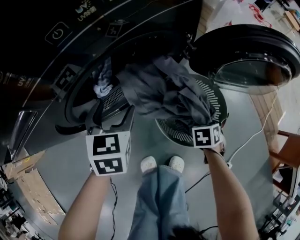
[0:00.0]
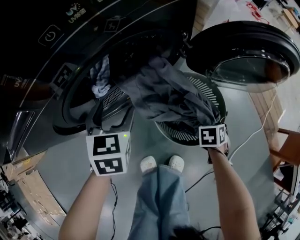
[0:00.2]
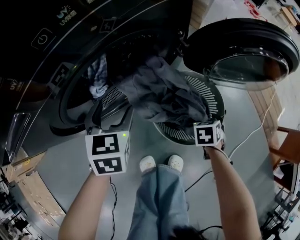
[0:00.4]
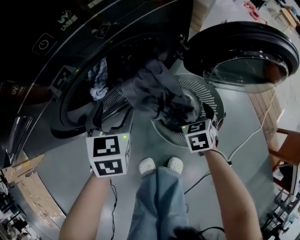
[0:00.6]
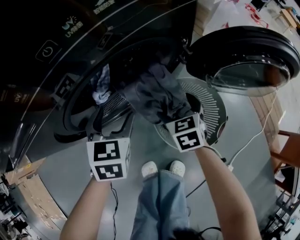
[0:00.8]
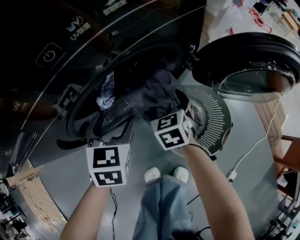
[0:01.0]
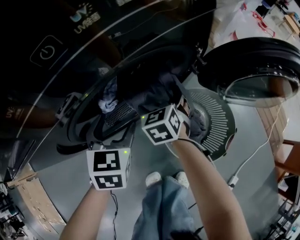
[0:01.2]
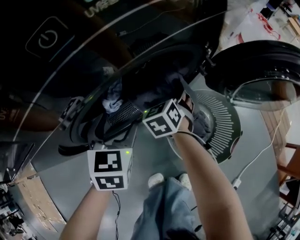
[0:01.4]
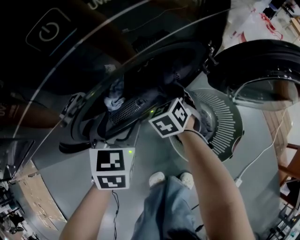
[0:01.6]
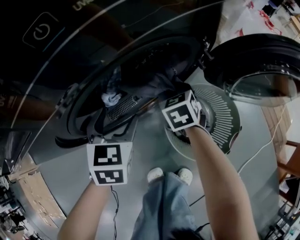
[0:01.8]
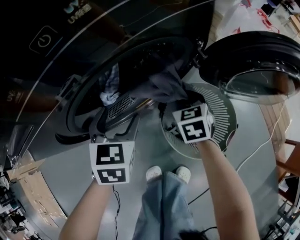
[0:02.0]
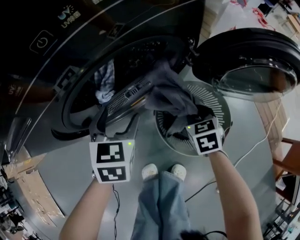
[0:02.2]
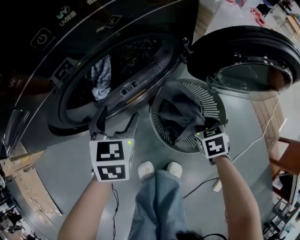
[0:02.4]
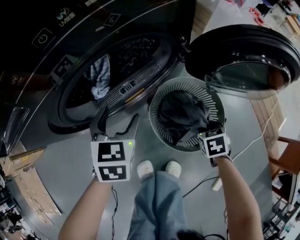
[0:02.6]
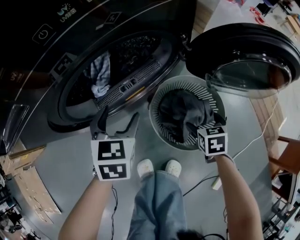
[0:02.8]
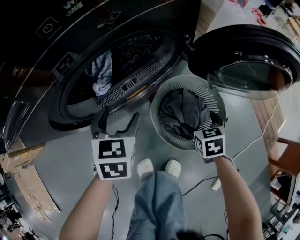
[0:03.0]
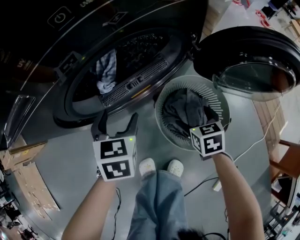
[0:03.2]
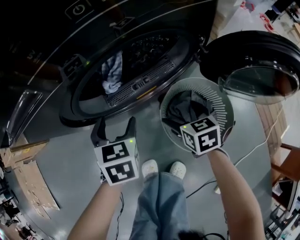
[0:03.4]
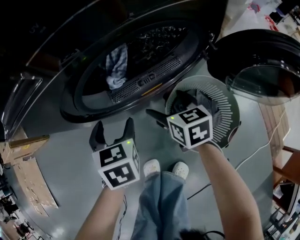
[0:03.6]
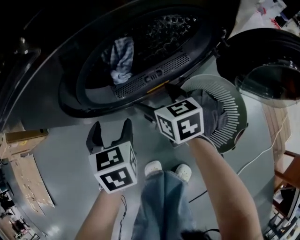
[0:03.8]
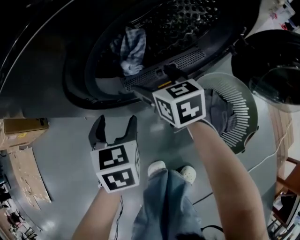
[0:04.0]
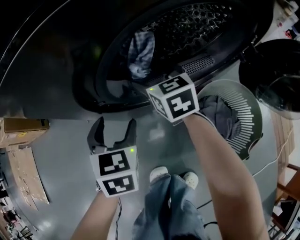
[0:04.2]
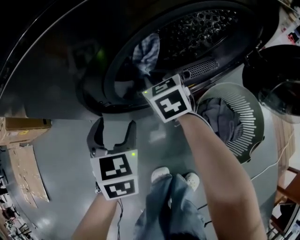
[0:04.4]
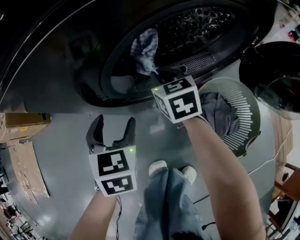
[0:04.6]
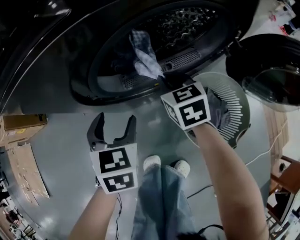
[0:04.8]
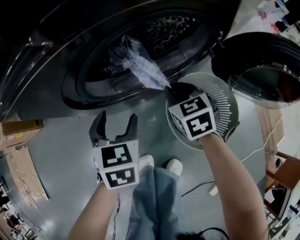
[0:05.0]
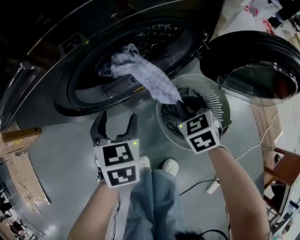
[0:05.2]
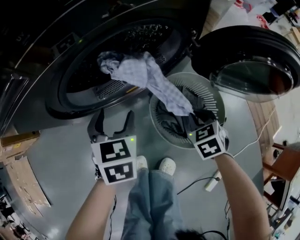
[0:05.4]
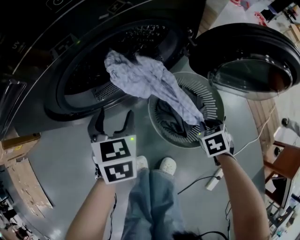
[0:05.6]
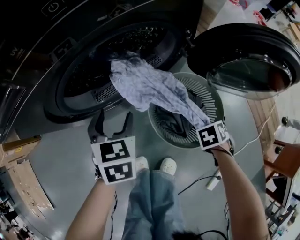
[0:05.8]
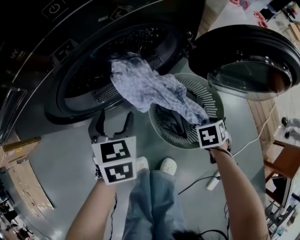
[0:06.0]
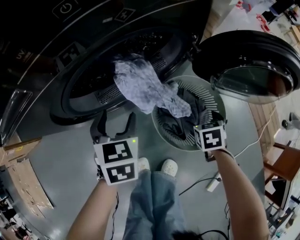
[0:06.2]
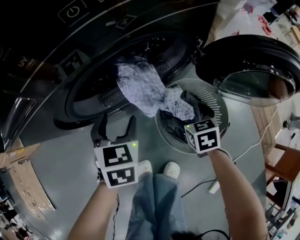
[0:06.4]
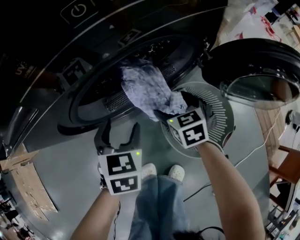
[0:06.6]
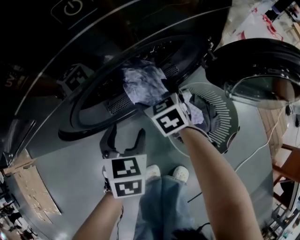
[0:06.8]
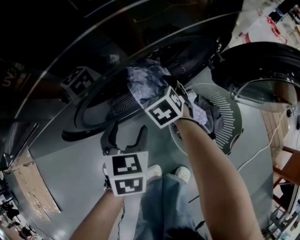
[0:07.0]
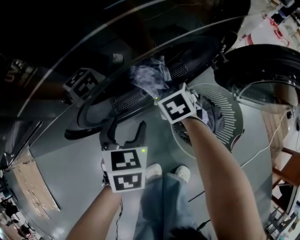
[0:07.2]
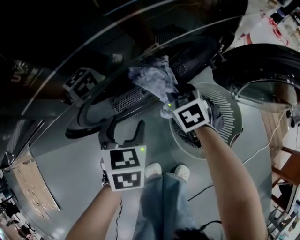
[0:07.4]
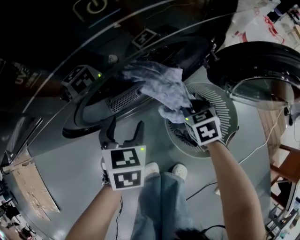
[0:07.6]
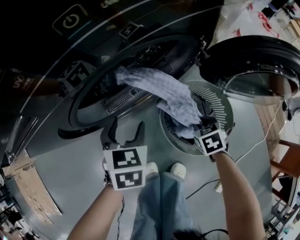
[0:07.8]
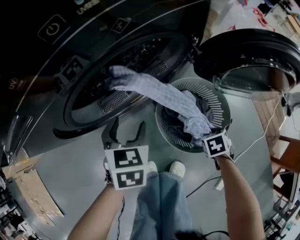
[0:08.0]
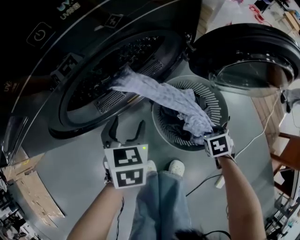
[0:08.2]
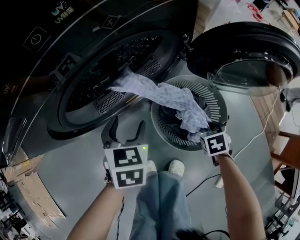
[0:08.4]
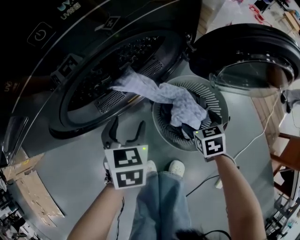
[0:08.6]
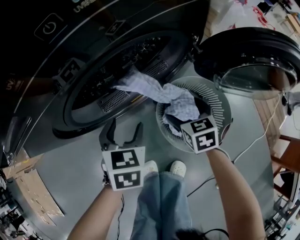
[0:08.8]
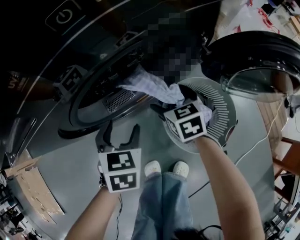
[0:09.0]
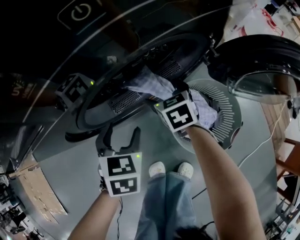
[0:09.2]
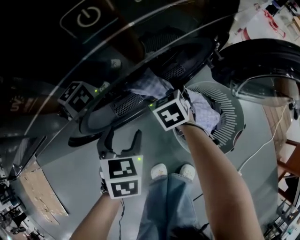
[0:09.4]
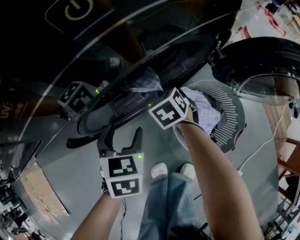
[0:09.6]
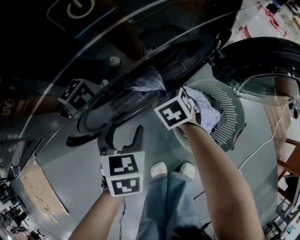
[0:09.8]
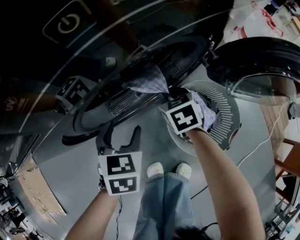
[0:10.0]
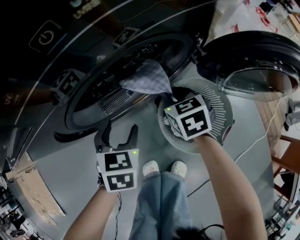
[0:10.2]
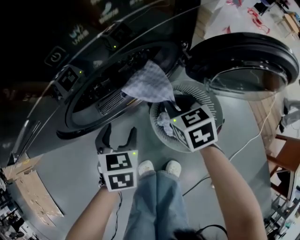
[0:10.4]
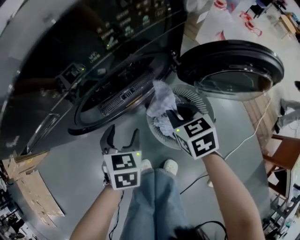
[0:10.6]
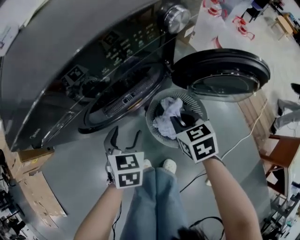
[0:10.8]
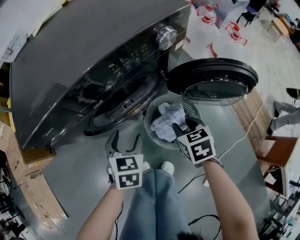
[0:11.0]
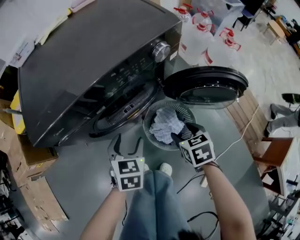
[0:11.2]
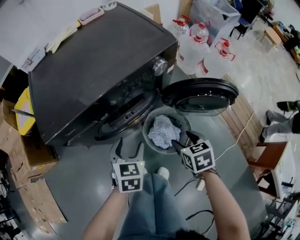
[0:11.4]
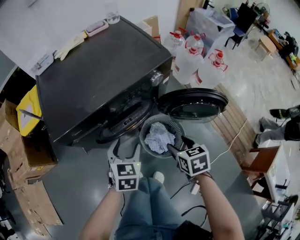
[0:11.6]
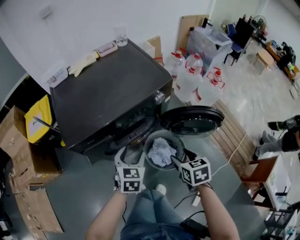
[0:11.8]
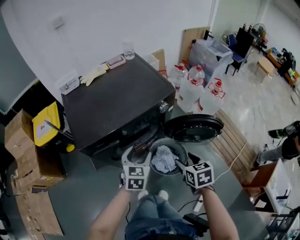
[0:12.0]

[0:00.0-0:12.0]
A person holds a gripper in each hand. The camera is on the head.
0:00.0 to 0:01.6: The right gripper moves some 35 cm, rotates roughly 50 degrees, and opens and closes again.
0:01.6 to 0:03.0: The right gripper is displaced backward and to the right by about 25 cm, turns by some 30 degrees, and opens up, while the left gripper changes place by approximately 5 cm.
0:03.0 to 0:04.4: The right gripper shifts by some 40 cm, rotates some 40 degrees, and closes. Meanwhile the left gripper shifts by approximately 20 cm.
0:04.4 to 0:06.0: The right gripper changes place by about 50 cm, and points its fingers roughly 40 degrees further downward. The left gripper shifts by approximately 15 cm.
0:06.0 to 0:07.6: The right gripper rotates some 30 degrees, and opens, then closes once more.
0:07.6 to 0:09.0: The right gripper opens its fingers.
0:09.0 to 0:10.4: The right gripper moves upward, roughly 5 cm, and closes up.
0:10.4 to 0:12.0: The left gripper travels upward by roughly 35 cm, and changes its angle by roughly 20 degrees. Meanwhile the right gripper heads upward and backward, covering some 40 cm, and opens its fingers.

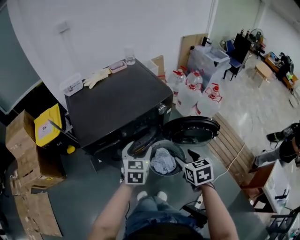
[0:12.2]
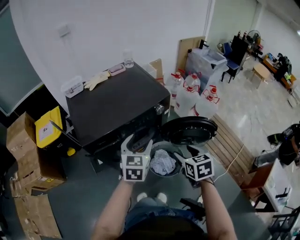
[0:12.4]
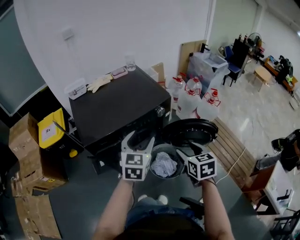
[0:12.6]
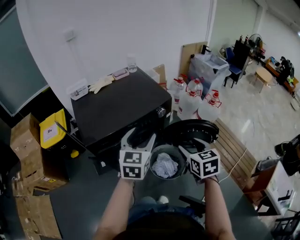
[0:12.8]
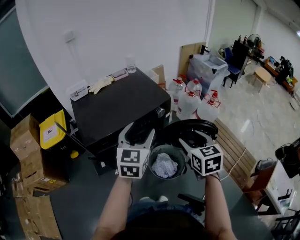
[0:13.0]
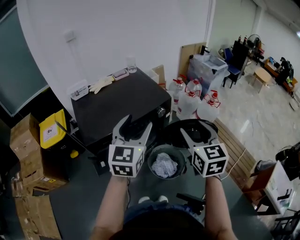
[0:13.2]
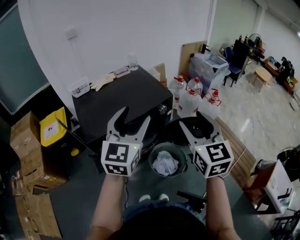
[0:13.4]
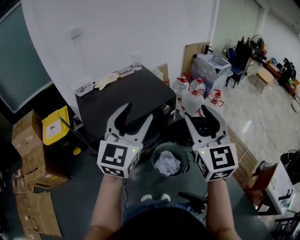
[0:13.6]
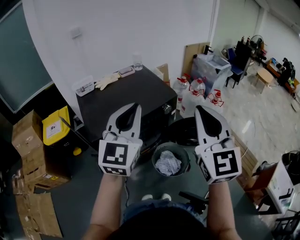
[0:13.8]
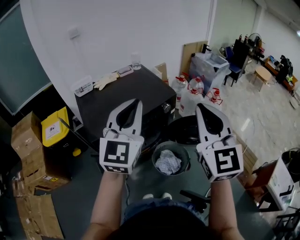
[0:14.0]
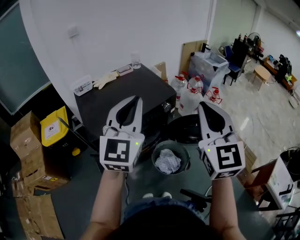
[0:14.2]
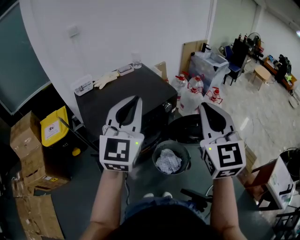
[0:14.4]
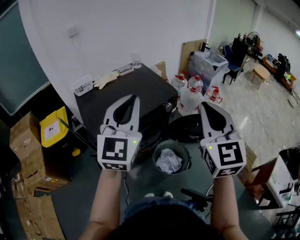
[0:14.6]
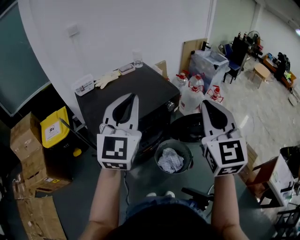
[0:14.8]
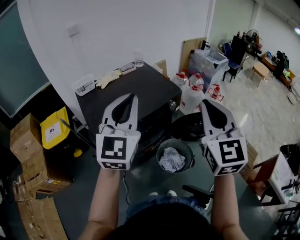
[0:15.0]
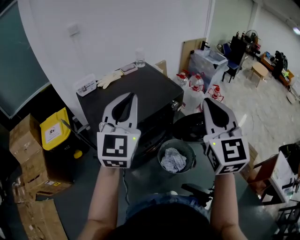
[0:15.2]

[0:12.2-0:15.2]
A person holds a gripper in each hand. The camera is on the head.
0:12.2 to 0:13.8: Both grippers move upward, approximately 30 cm. The left gripper points its fingers some 30 degrees further upward, and closes its fingers. The right gripper tips its fingers upward by some 50 degrees, and closes.
0:13.8 to 0:15.2: The left gripper moves to the left, about 10 cm.

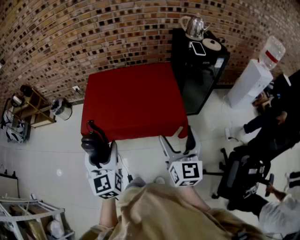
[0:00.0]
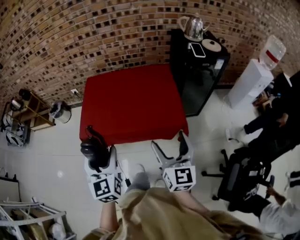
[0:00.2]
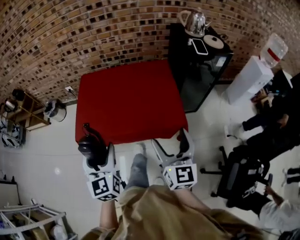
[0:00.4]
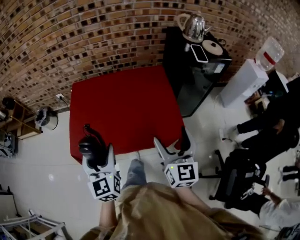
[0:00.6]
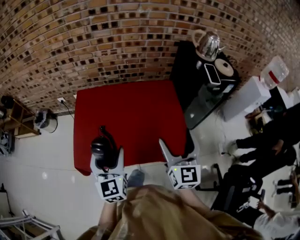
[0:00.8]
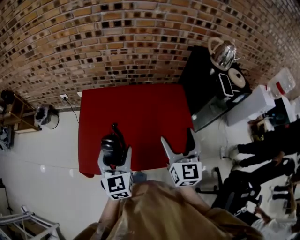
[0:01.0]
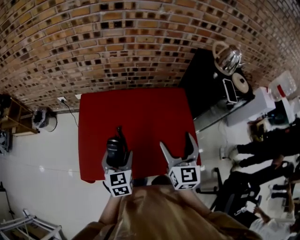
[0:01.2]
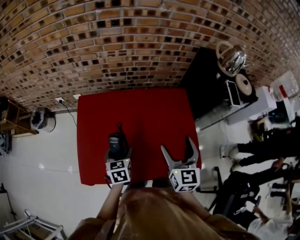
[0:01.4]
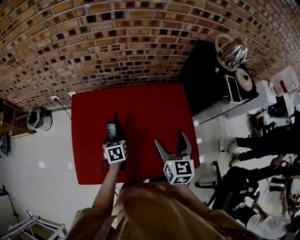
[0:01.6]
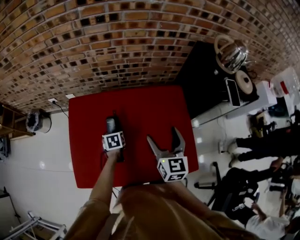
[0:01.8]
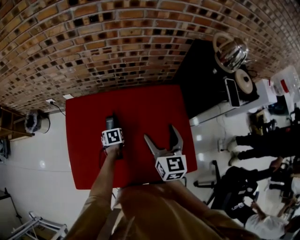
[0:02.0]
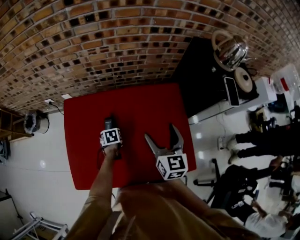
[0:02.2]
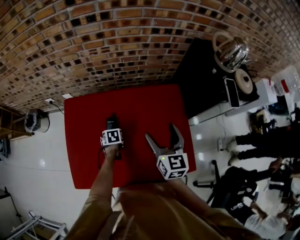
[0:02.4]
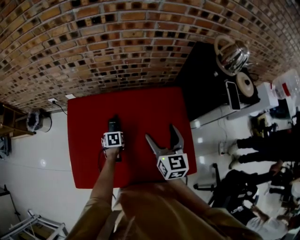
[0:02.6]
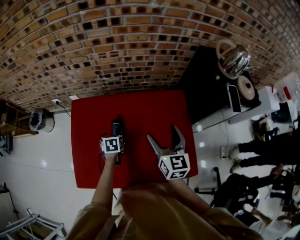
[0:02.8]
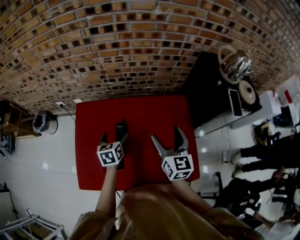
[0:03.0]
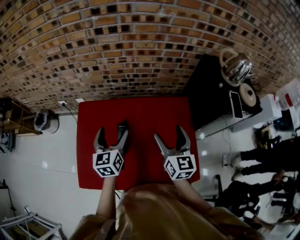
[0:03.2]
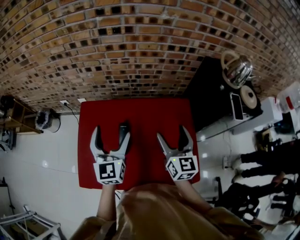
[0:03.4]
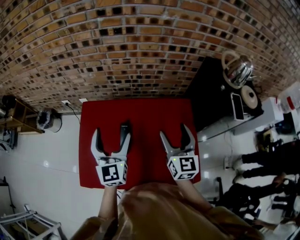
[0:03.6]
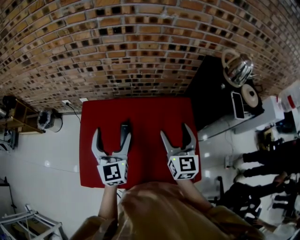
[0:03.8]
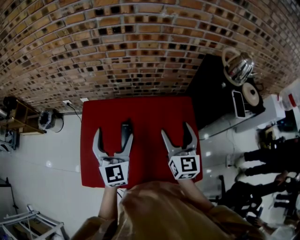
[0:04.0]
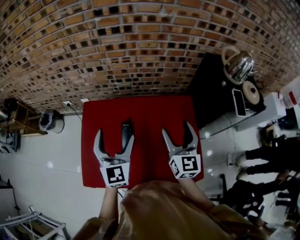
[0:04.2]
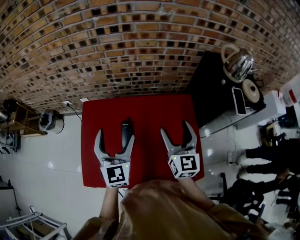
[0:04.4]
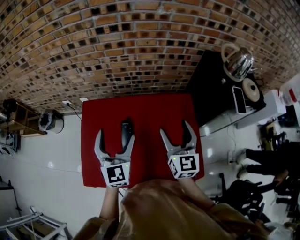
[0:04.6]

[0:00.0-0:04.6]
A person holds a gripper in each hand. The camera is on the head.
0:00.0 to 0:01.6: Both grippers are carried forward, roughly 40 cm. The left gripper goes about 30 cm downward, and points its fingers about 40 degrees further downward.
0:01.6 to 0:03.0: The right gripper goes roughly 5 cm forward. Meanwhile the left gripper moves upward and forward, roughly 10 cm.
0:03.0 to 0:04.6: The left gripper goes approximately 20 cm upward, and tips its fingers upward by approximately 30 degrees.

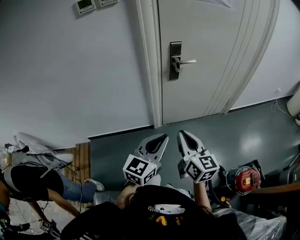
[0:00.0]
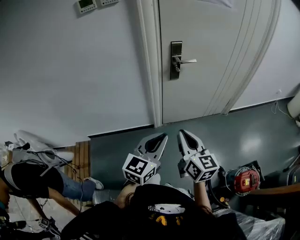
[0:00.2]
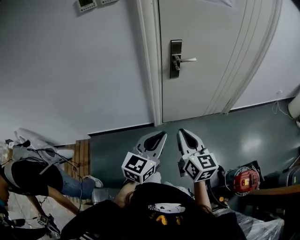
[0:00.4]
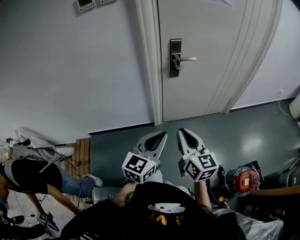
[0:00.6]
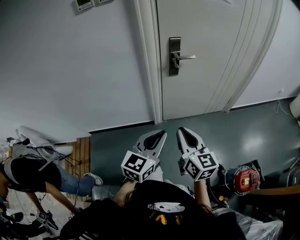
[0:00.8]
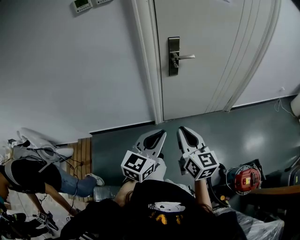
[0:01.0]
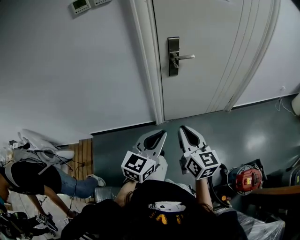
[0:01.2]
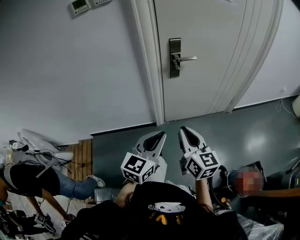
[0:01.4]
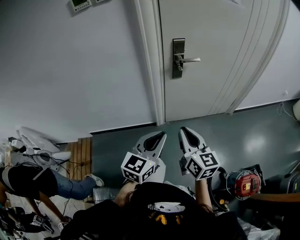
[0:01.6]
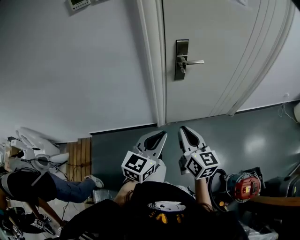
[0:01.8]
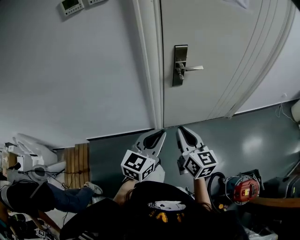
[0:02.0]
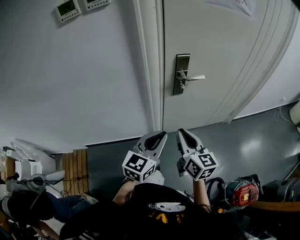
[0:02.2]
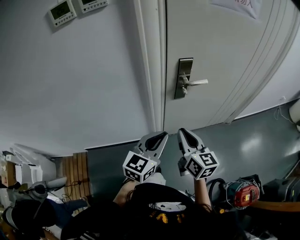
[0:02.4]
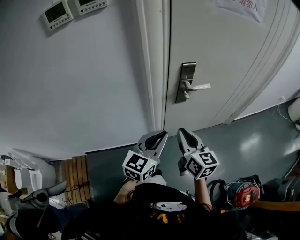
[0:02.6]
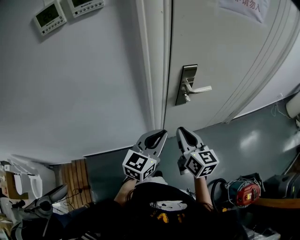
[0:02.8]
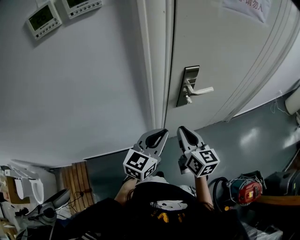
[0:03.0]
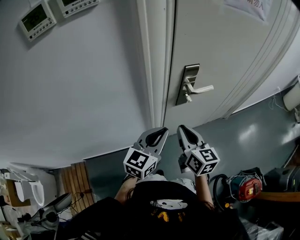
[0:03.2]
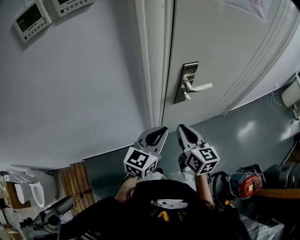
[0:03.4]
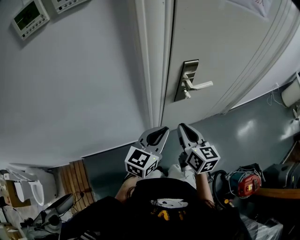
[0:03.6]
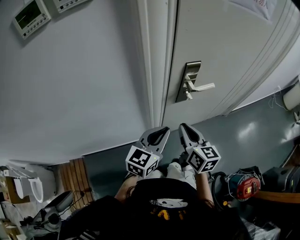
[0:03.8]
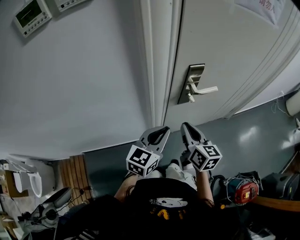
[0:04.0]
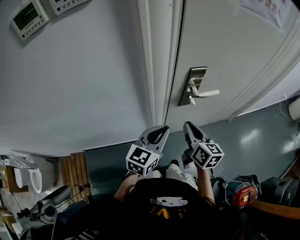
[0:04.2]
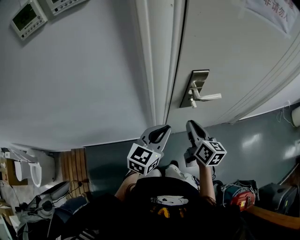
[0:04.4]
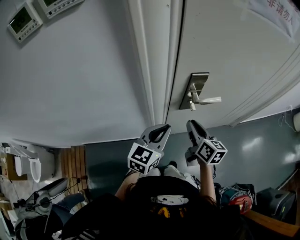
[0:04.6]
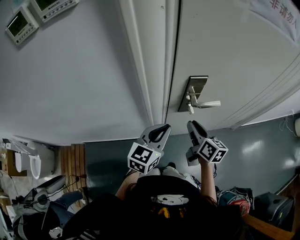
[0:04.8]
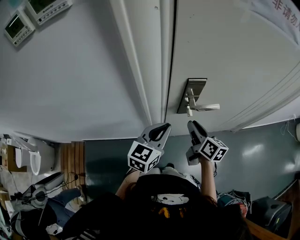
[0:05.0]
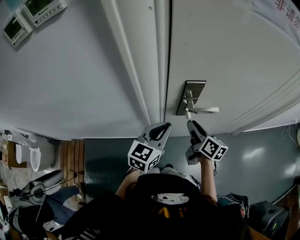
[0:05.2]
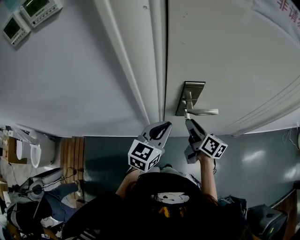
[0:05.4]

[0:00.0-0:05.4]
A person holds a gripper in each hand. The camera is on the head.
0:00.0 to 0:01.4: The grippers move only a little.
0:01.4 to 0:02.8: The grippers both shift forward by roughly 25 cm.
0:02.8 to 0:04.0: The right gripper travels forward by some 5 cm; the left gripper shifts by about 5 cm.
0:04.0 to 0:05.4: The right gripper heads forward, to the right and downward, covering approximately 15 cm, changes its angle by some 30 degrees, and opens its fingers; the left gripper is displaced forward and to the right by approximately 10 cm.
